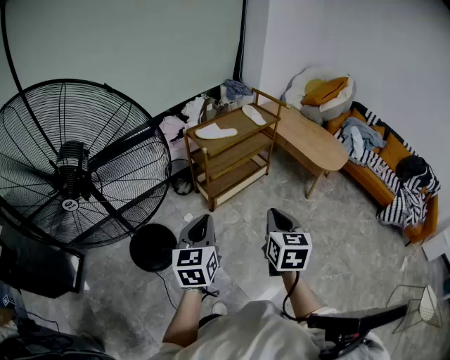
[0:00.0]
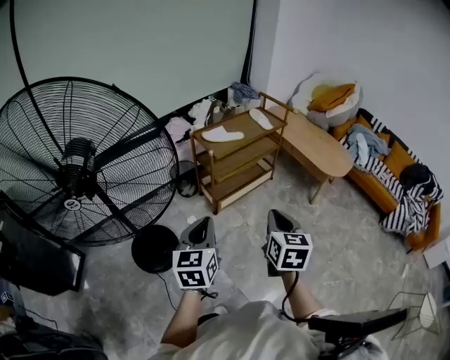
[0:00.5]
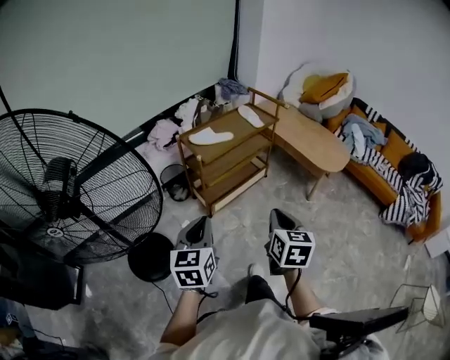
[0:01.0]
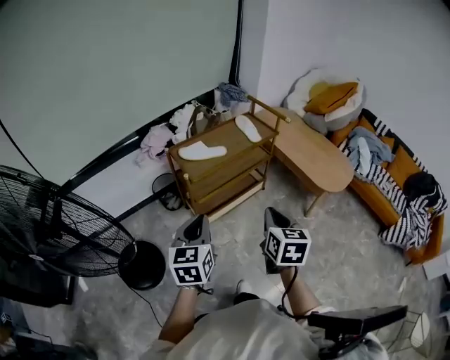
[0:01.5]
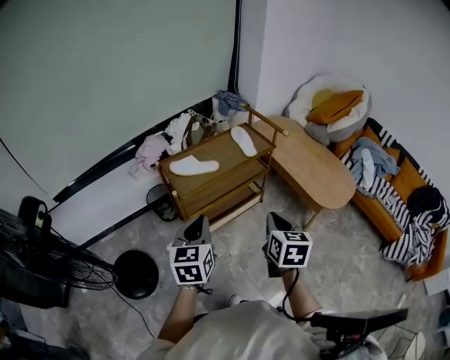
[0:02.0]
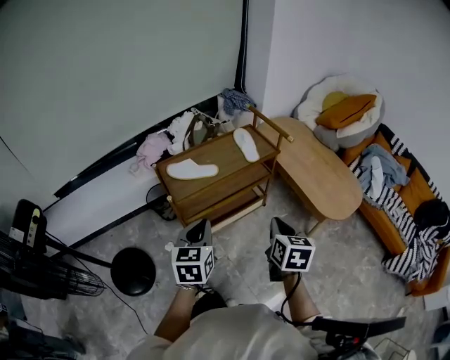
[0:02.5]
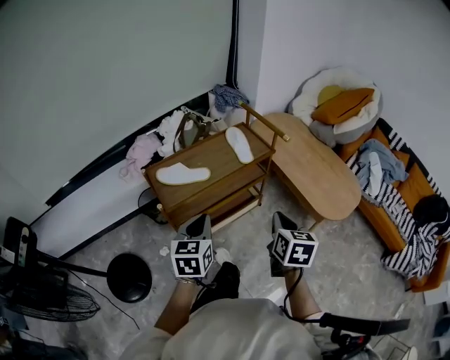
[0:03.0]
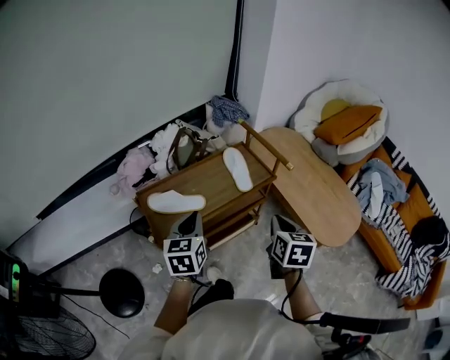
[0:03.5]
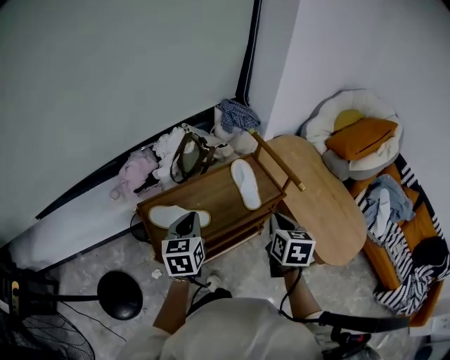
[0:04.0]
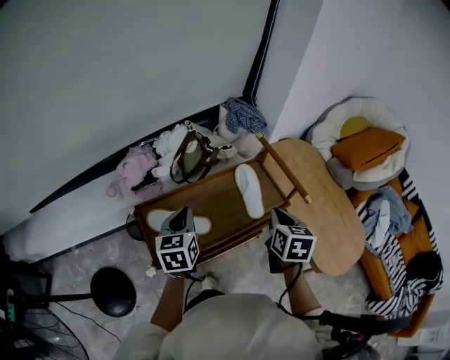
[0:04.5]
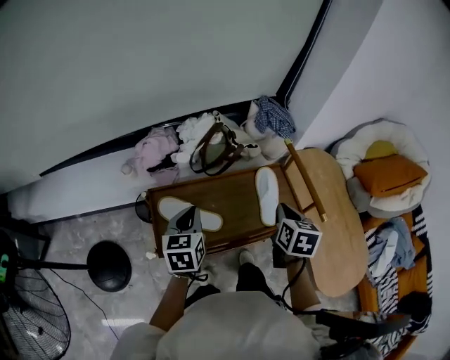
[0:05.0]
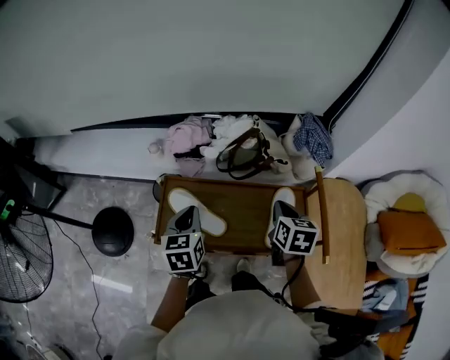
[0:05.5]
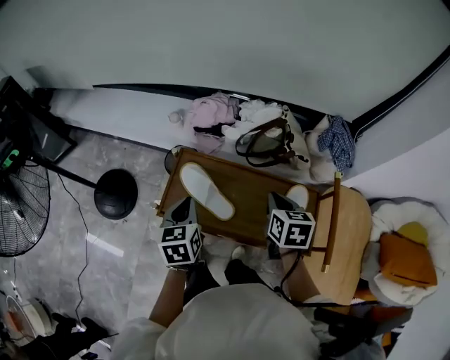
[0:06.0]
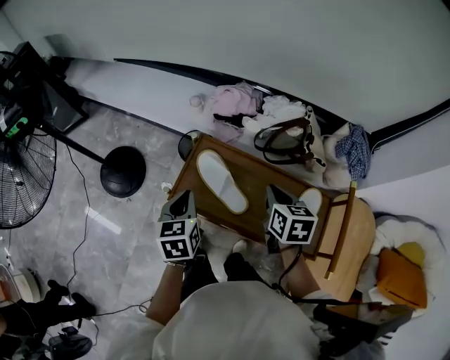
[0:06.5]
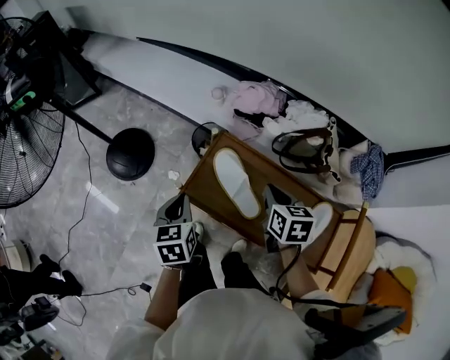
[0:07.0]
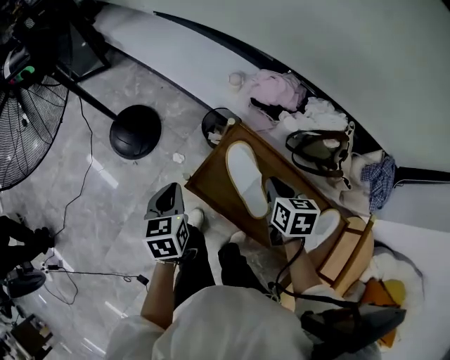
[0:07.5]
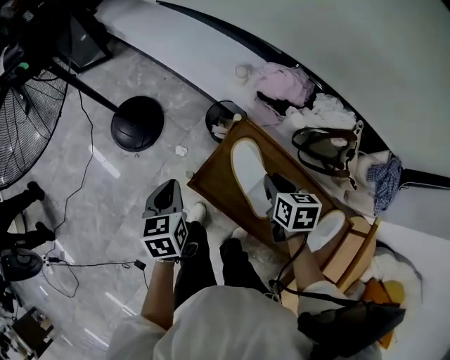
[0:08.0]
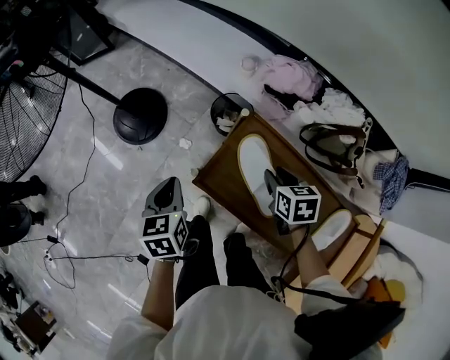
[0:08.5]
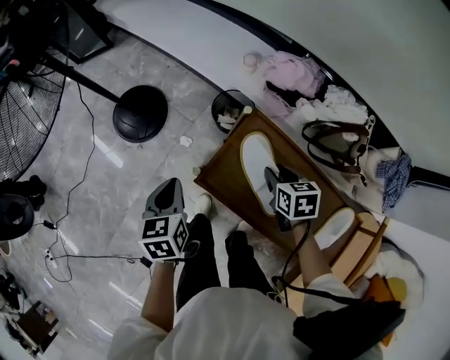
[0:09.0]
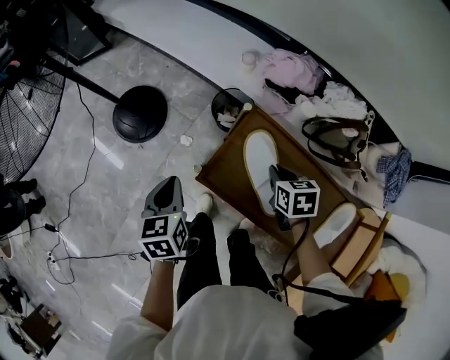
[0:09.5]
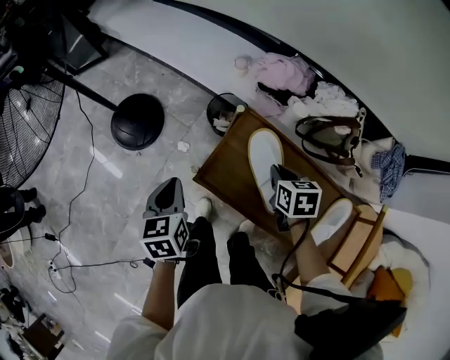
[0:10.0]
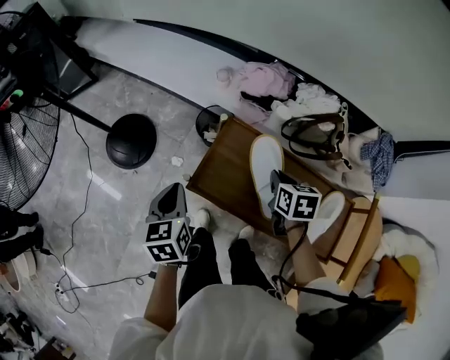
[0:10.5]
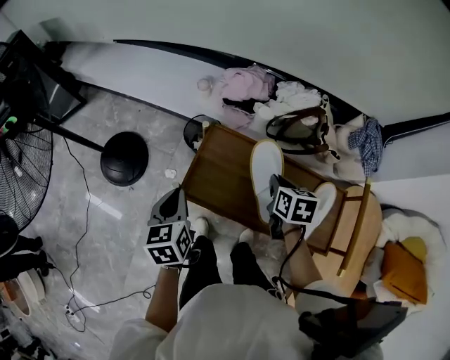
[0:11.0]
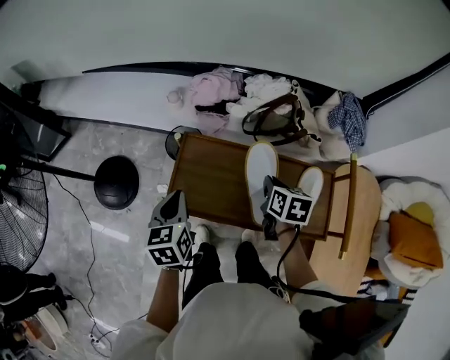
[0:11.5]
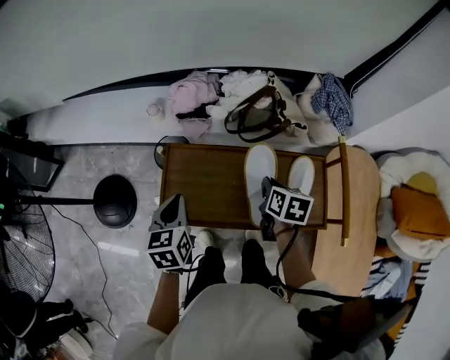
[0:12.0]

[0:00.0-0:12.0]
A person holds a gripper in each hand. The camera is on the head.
0:00.0 to 0:02.0: The left gripper moves forward, some 30 cm. Meanwhile the right gripper travels forward and to the right by some 30 cm.
0:02.0 to 0:04.0: Both grippers travel together forward, some 35 cm.
0:04.0 to 0:06.0: The left gripper ends up about 10 cm from where it was, and changes its angle by about 50 degrees. The right gripper changes place by approximately 25 cm, and changes its angle by roughly 50 degrees.
0:06.0 to 0:08.0: The right gripper changes place by about 20 cm, and swivels about 30 degrees; the left gripper shifts by approximately 20 cm, and turns by some 30 degrees.
0:08.0 to 0:10.0: The grippers make only small movements.
0:10.0 to 0:12.0: The left gripper changes place by approximately 15 cm, and rotates approximately 30 degrees; the right gripper moves roughly 20 cm, and rotates roughly 50 degrees.

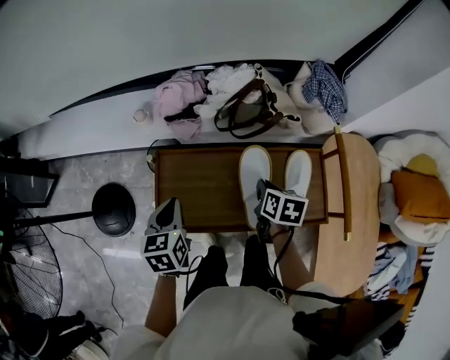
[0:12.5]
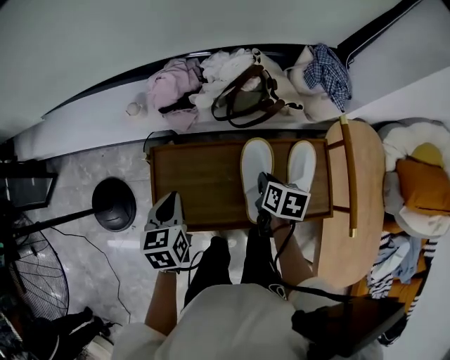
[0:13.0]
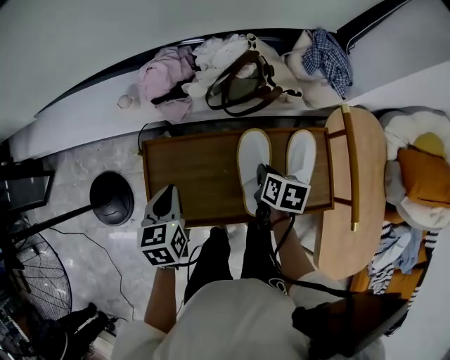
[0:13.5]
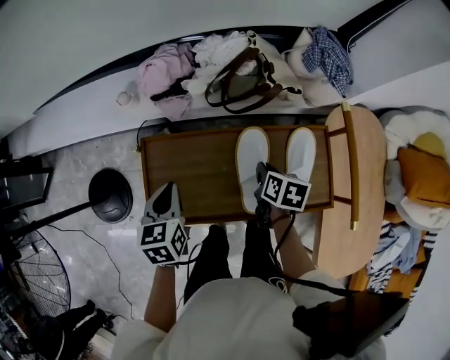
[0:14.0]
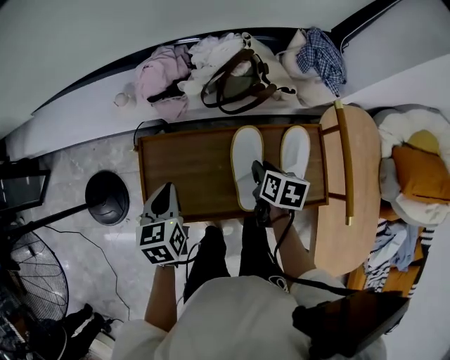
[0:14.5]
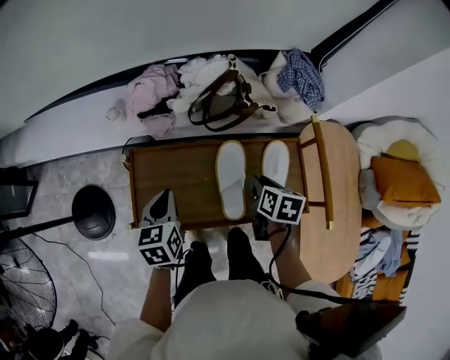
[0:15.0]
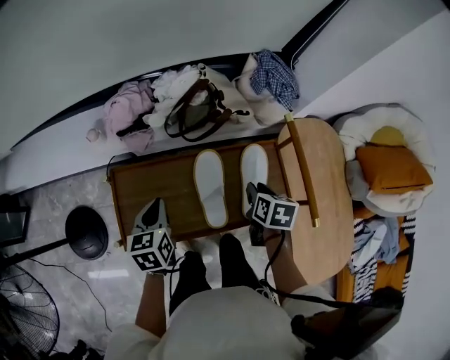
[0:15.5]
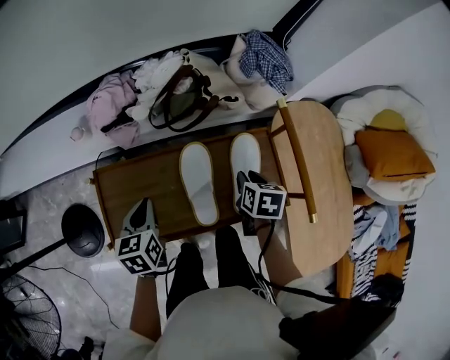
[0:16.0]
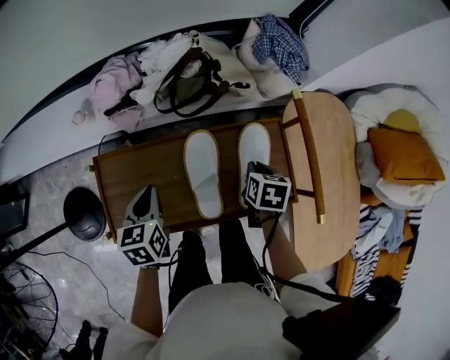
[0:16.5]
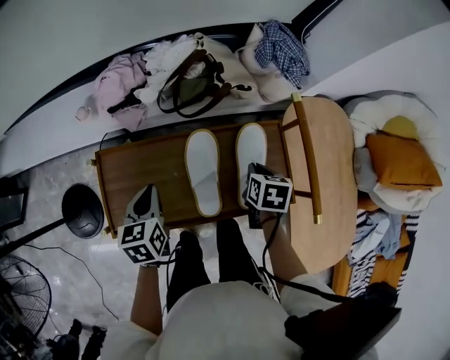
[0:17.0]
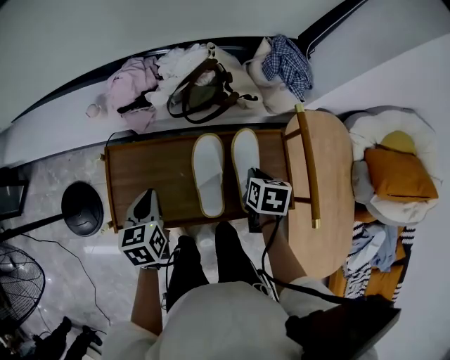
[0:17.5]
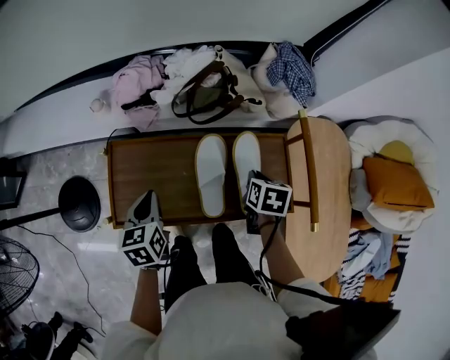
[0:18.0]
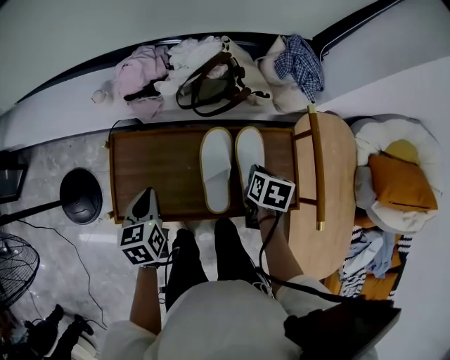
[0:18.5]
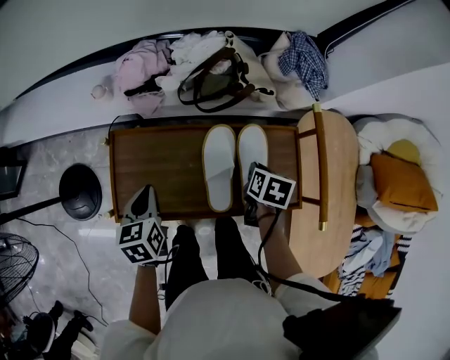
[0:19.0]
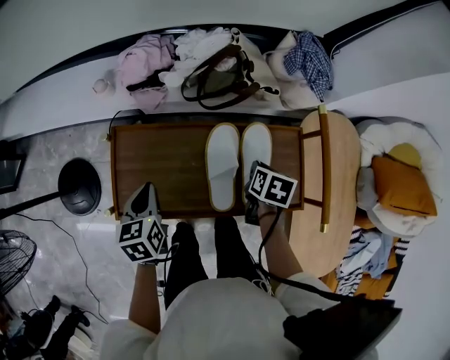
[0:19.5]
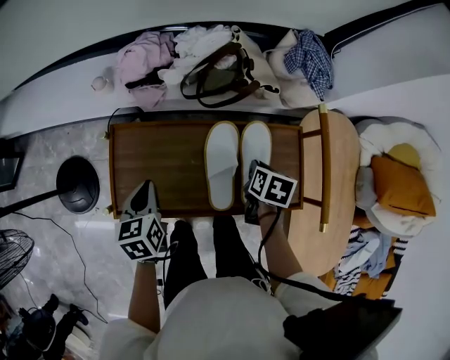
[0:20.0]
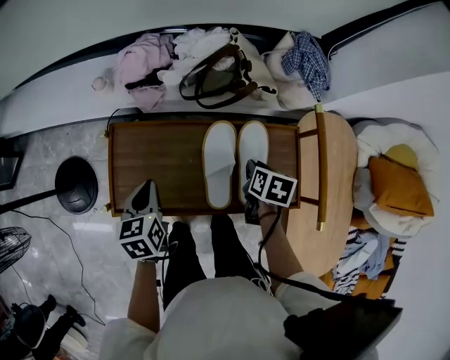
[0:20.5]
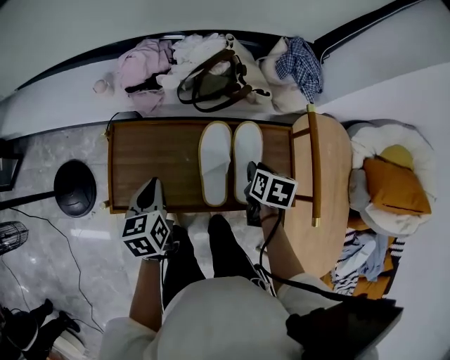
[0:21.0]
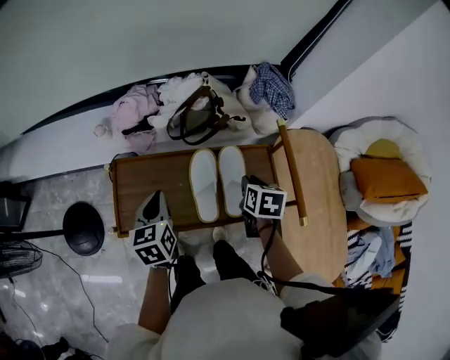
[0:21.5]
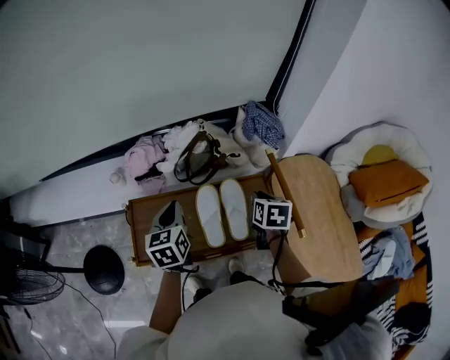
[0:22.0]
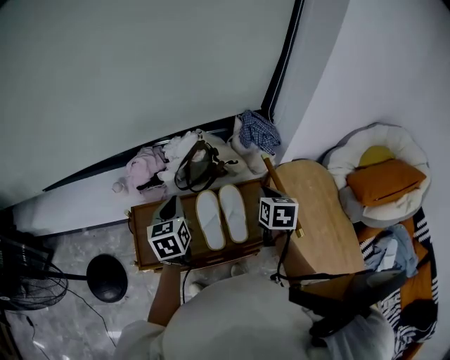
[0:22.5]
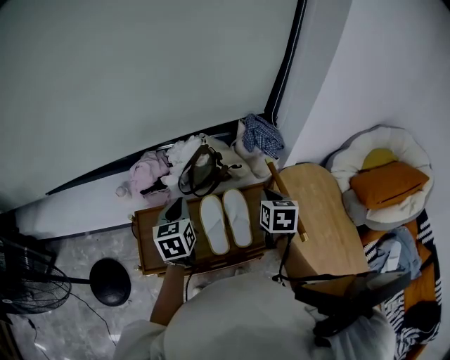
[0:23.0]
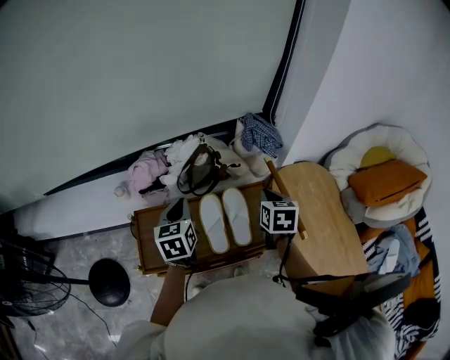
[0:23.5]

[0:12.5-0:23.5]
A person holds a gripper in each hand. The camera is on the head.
0:12.5 to 0:14.5: There are only small adjustments of the grippers.
0:14.5 to 0:16.0: The right gripper is displaced to the right by approximately 10 cm. The left gripper travels to the right by some 5 cm.
0:16.0 to 0:18.0: The right gripper closes up.
0:18.0 to 0:20.0: There are only small adjustments of the grippers.
0:20.0 to 0:21.5: The right gripper shifts approximately 10 cm upward. The left gripper moves upward and to the right, about 10 cm.
0:21.5 to 0:23.5: The left gripper goes some 10 cm upward and forward, while the right gripper heads upward, covering approximately 10 cm.

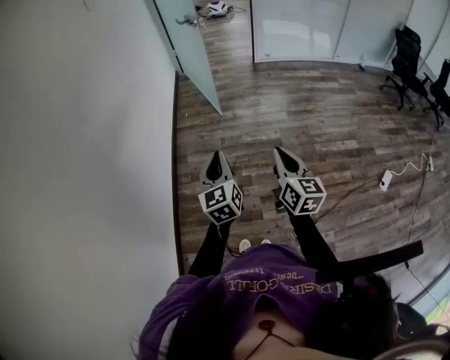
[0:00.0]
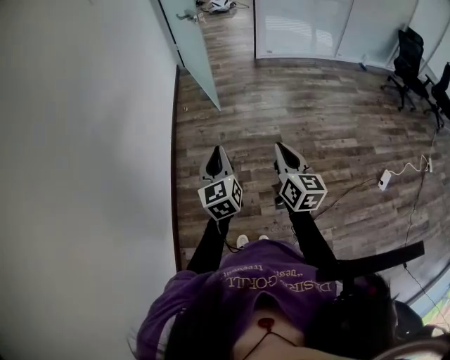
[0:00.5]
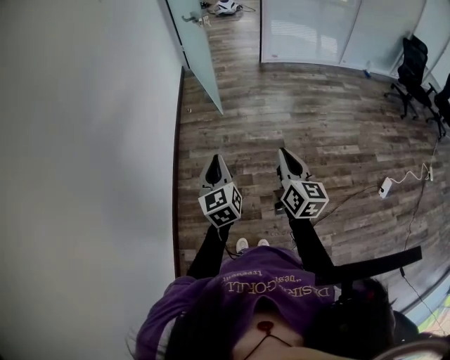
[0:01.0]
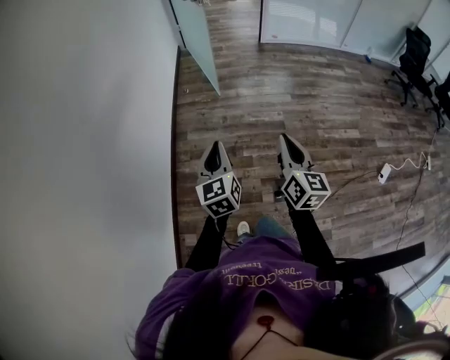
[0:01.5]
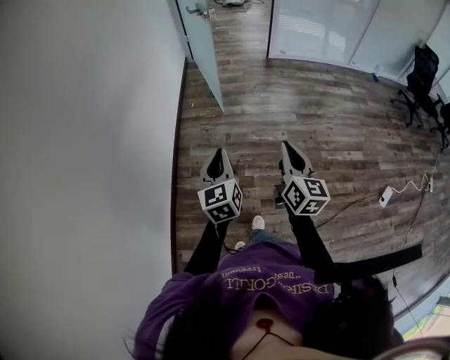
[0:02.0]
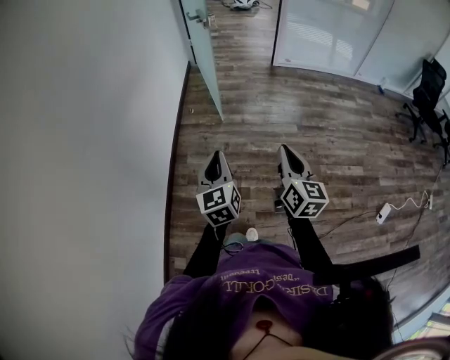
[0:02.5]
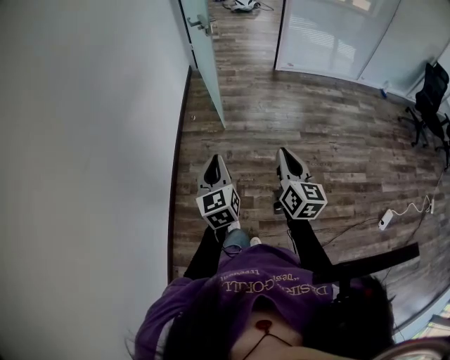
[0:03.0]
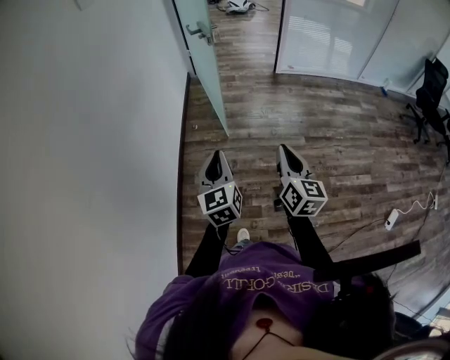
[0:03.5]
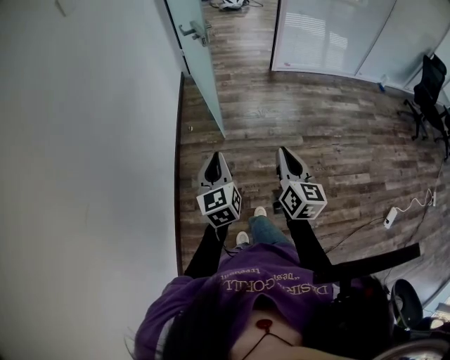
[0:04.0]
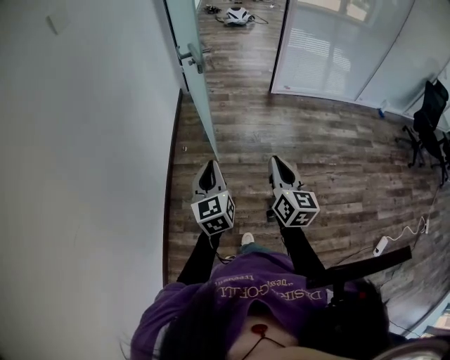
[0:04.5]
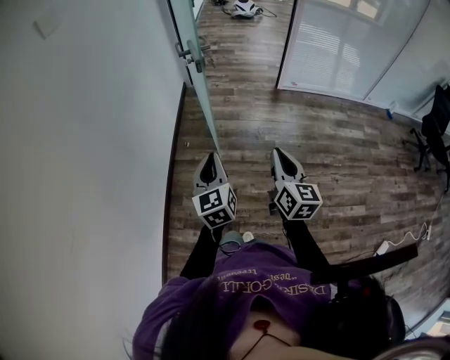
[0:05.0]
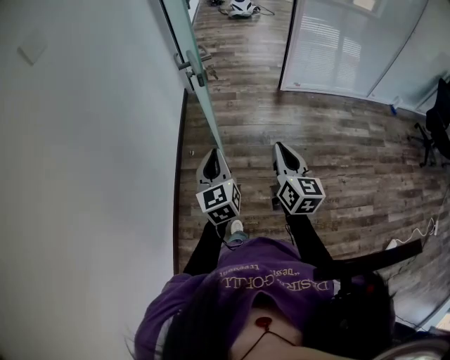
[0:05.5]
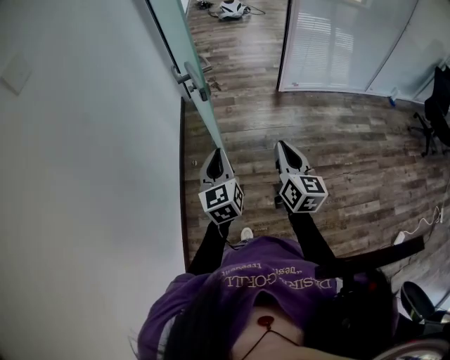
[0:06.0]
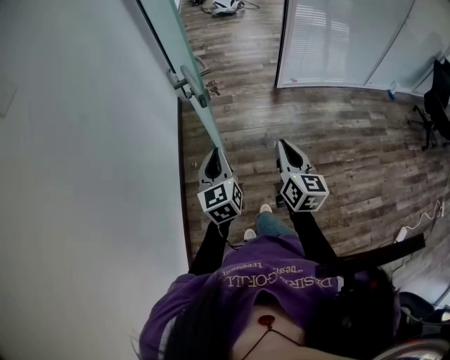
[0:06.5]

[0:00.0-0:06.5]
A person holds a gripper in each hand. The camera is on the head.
0:00.0 to 0:02.0: Both grippers move forward, roughly 10 cm.
0:02.0 to 0:04.5: The two grippers go about 35 cm forward.
0:04.5 to 0:06.5: The grippers both shift forward by roughly 25 cm.
